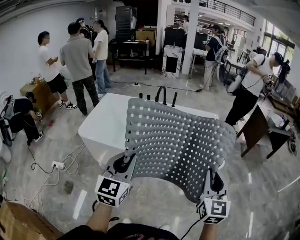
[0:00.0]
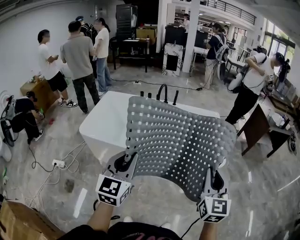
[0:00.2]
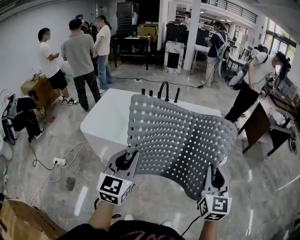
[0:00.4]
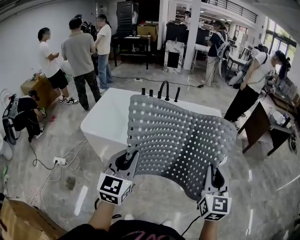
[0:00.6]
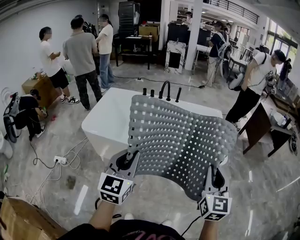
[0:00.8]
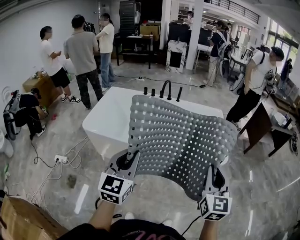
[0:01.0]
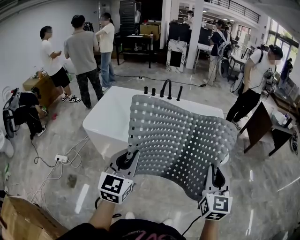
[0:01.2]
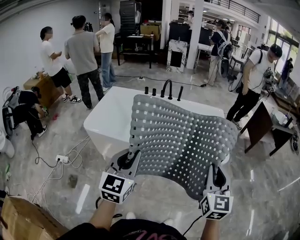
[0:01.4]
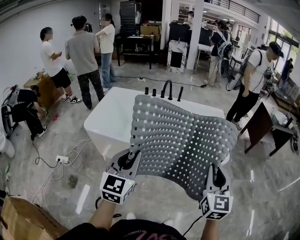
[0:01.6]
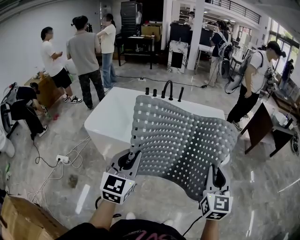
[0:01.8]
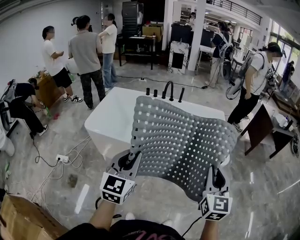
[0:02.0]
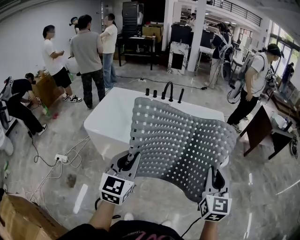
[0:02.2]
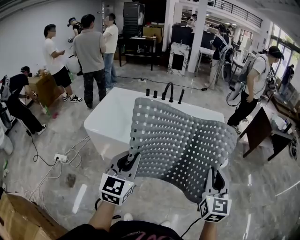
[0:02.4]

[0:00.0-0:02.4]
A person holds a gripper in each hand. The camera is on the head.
0:00.0 to 0:02.4: There are only small adjustments of the grippers.

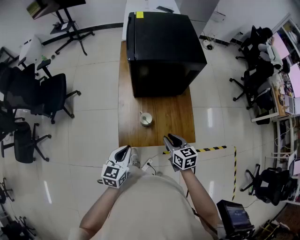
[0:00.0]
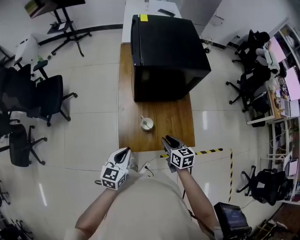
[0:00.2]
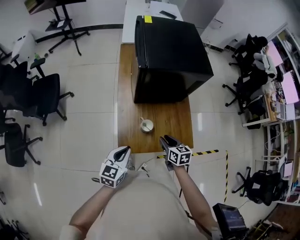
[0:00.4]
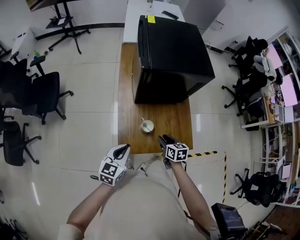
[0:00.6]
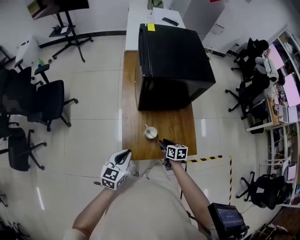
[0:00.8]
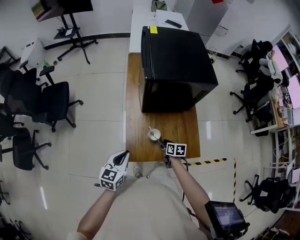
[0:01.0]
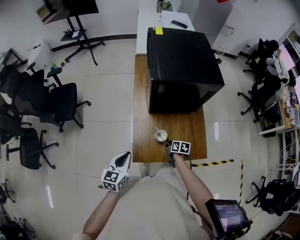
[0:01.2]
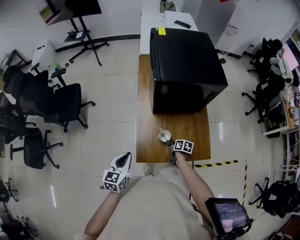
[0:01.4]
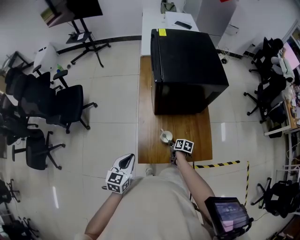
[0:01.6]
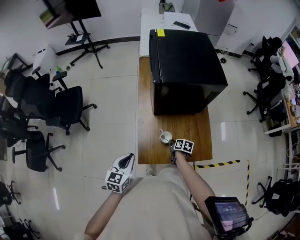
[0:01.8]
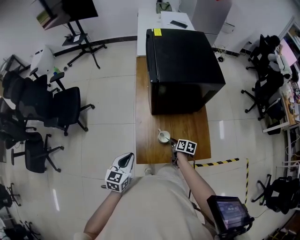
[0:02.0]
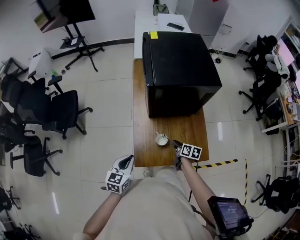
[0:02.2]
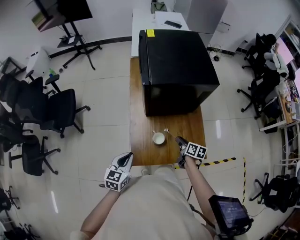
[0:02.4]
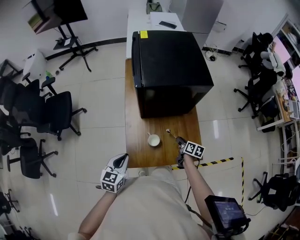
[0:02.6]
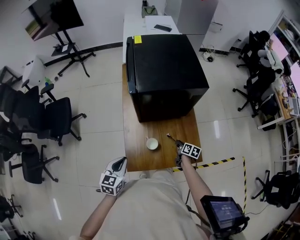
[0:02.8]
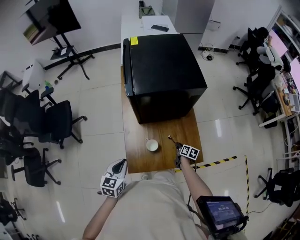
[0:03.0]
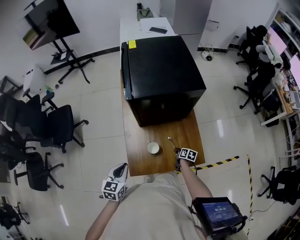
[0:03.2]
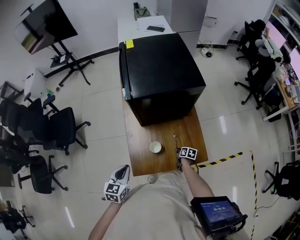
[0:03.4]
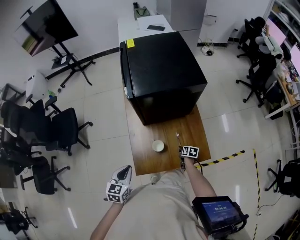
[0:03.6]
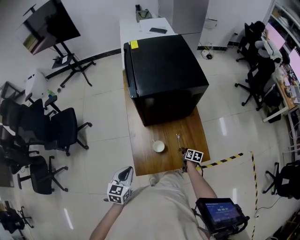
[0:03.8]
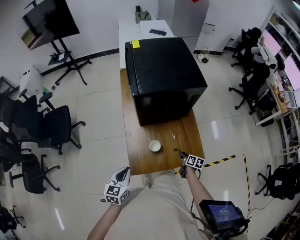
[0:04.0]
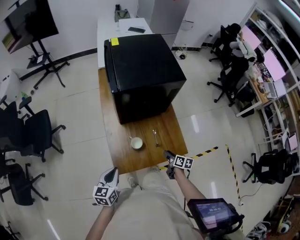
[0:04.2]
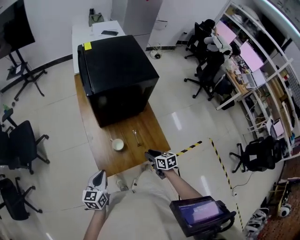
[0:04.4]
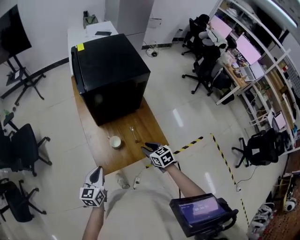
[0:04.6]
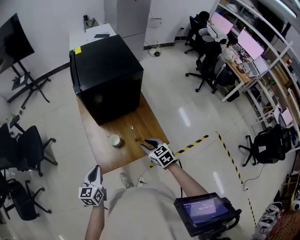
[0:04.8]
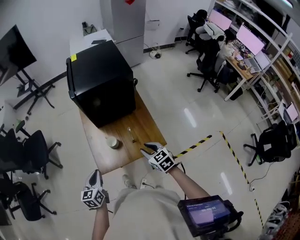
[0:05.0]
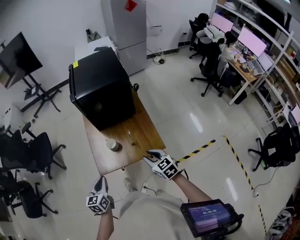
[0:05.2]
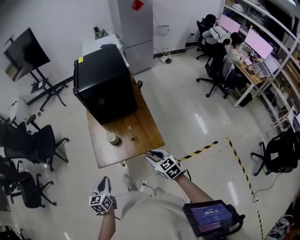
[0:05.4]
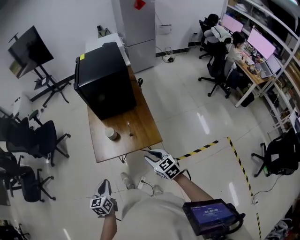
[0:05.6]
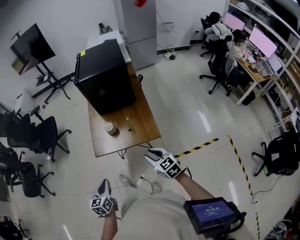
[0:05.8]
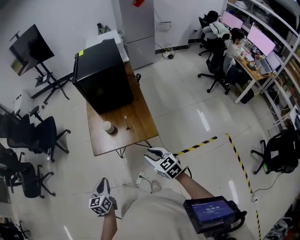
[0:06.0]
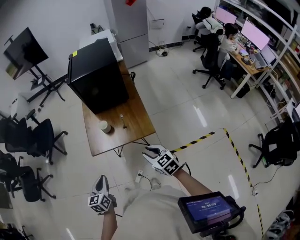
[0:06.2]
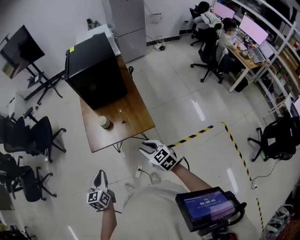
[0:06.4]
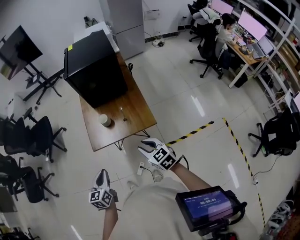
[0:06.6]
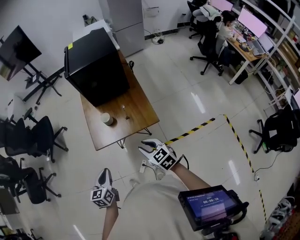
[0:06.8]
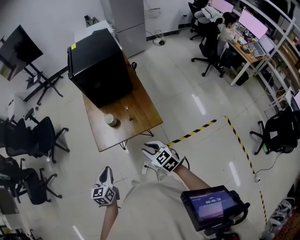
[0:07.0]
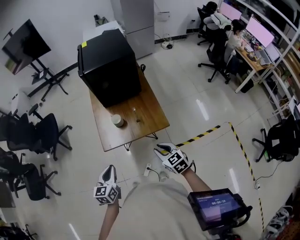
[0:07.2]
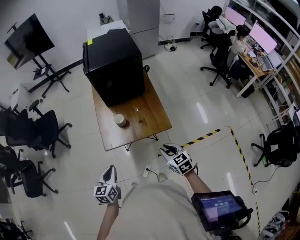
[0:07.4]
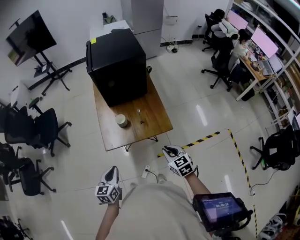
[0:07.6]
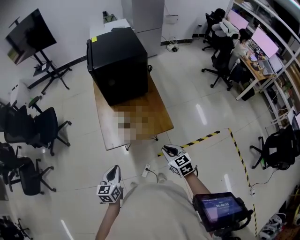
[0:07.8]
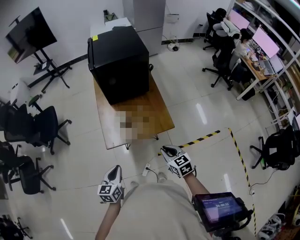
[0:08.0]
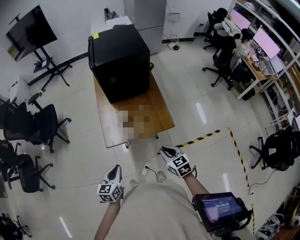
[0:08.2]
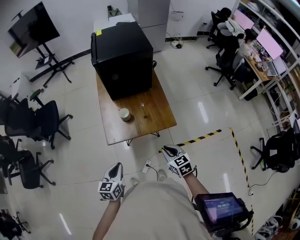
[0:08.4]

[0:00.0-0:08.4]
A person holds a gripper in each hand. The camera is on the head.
0:00.0 to 0:01.4: The right gripper travels downward and forward by about 25 cm, and rotates roughly 40 degrees; the left gripper heads to the left and forward, covering some 15 cm.
0:01.4 to 0:02.8: The left gripper ends up about 5 cm from where it was; the right gripper heads to the right, covering about 15 cm, and closes.
0:02.8 to 0:04.2: The right gripper heads backward, covering about 10 cm, and travels downward and back again, approximately 10 cm each way.
0:04.2 to 0:05.6: The left gripper travels backward and to the right by some 25 cm. Meanwhile the right gripper shifts roughly 25 cm backward and upward, and twists approximately 60 degrees counterclockwise, seen from behind.
0:05.6 to 0:07.0: The right gripper goes some 5 cm to the left.
0:07.0 to 0:08.4: The grippers make only small movements.

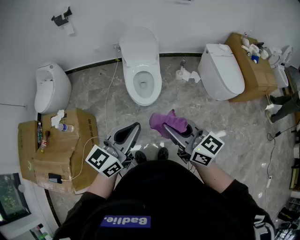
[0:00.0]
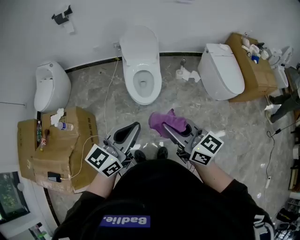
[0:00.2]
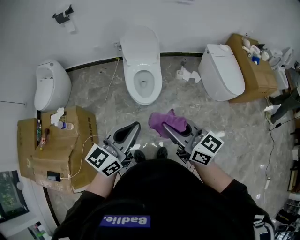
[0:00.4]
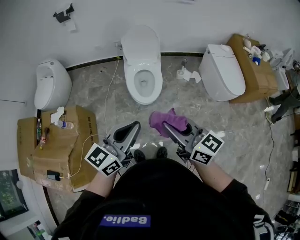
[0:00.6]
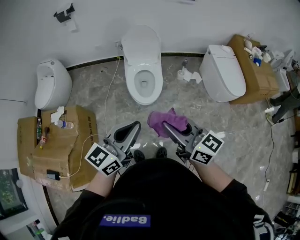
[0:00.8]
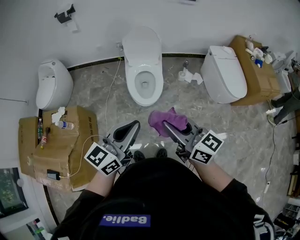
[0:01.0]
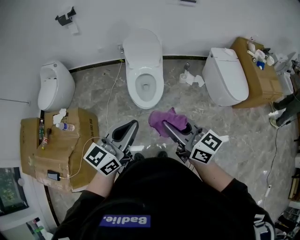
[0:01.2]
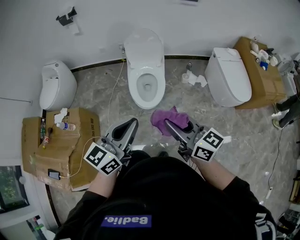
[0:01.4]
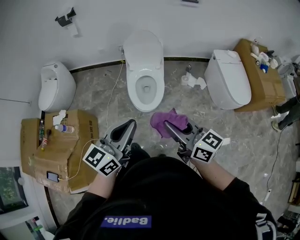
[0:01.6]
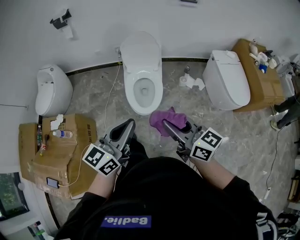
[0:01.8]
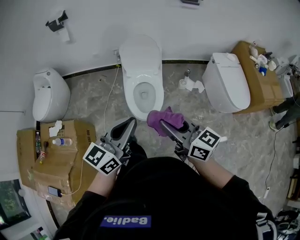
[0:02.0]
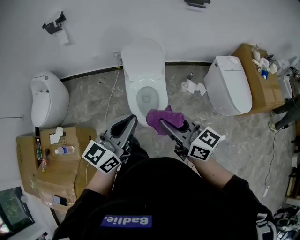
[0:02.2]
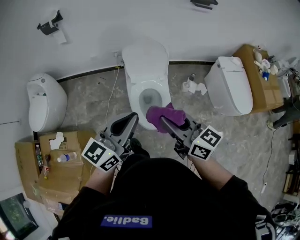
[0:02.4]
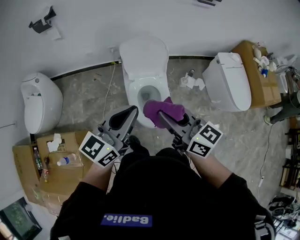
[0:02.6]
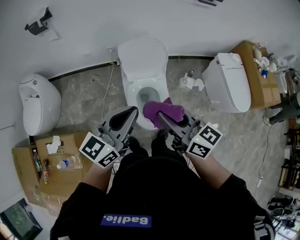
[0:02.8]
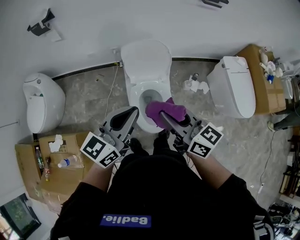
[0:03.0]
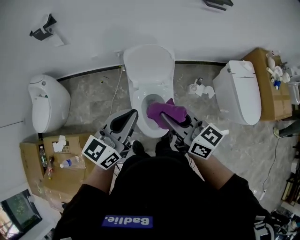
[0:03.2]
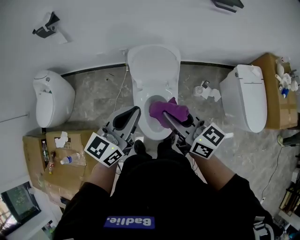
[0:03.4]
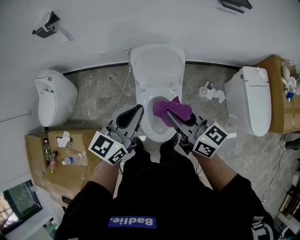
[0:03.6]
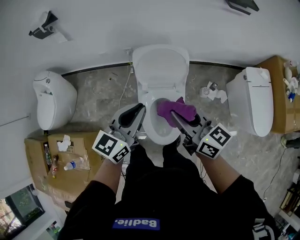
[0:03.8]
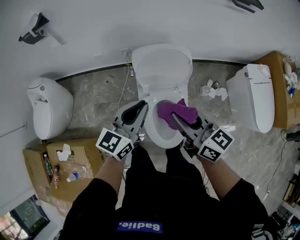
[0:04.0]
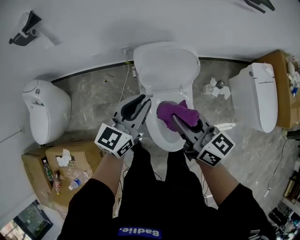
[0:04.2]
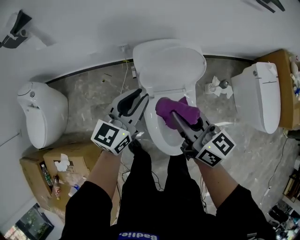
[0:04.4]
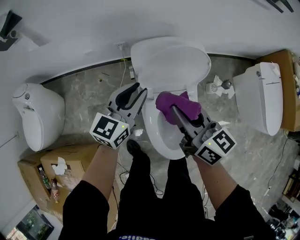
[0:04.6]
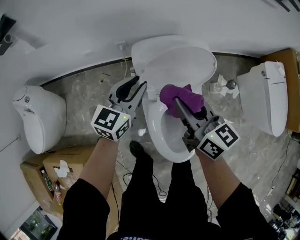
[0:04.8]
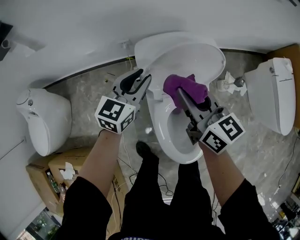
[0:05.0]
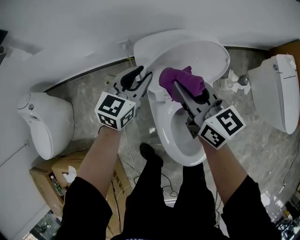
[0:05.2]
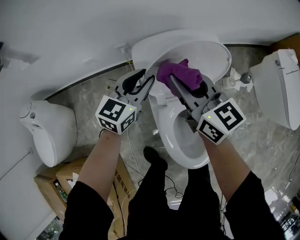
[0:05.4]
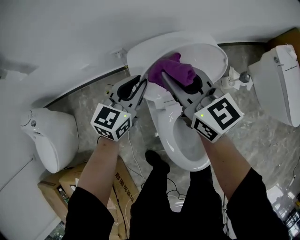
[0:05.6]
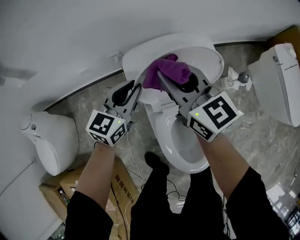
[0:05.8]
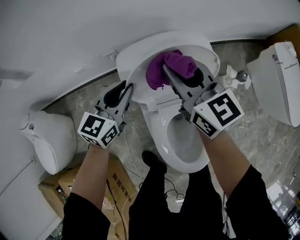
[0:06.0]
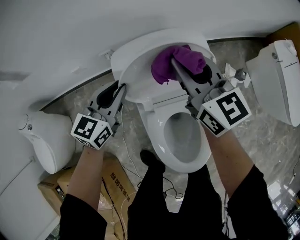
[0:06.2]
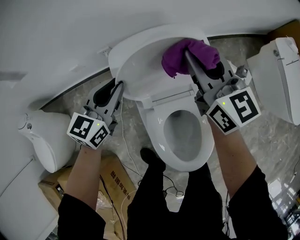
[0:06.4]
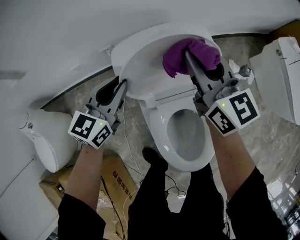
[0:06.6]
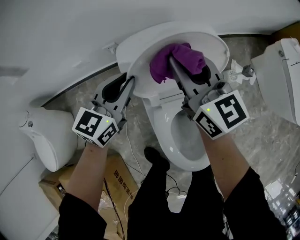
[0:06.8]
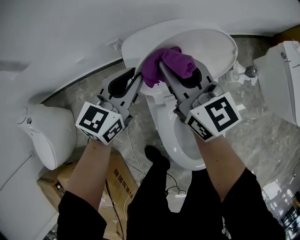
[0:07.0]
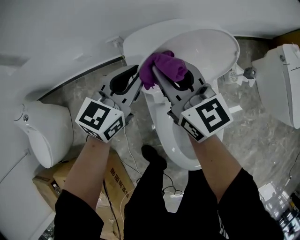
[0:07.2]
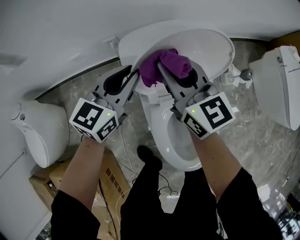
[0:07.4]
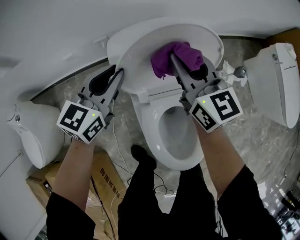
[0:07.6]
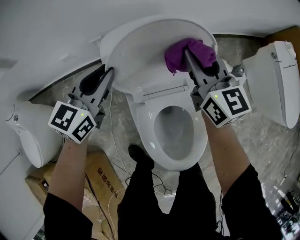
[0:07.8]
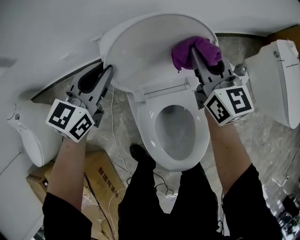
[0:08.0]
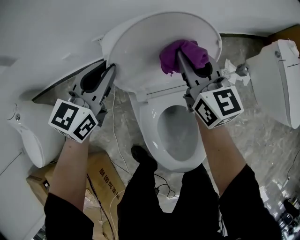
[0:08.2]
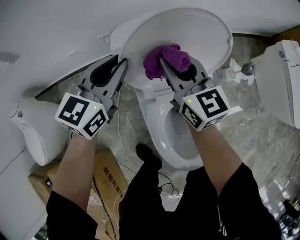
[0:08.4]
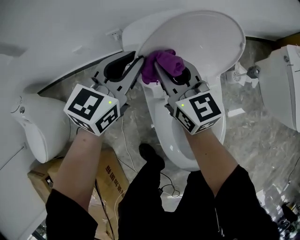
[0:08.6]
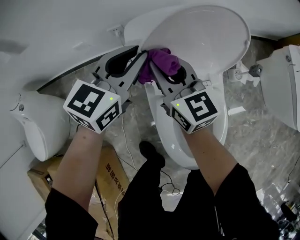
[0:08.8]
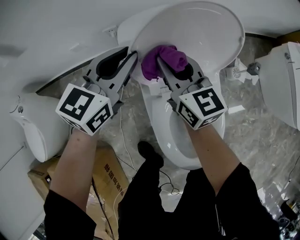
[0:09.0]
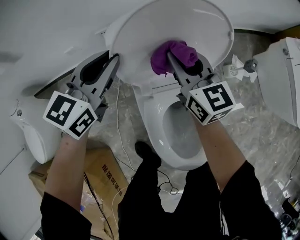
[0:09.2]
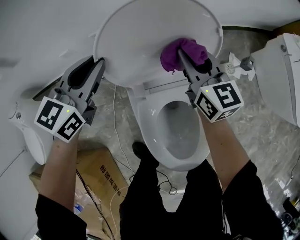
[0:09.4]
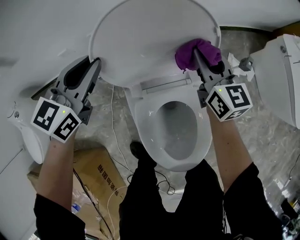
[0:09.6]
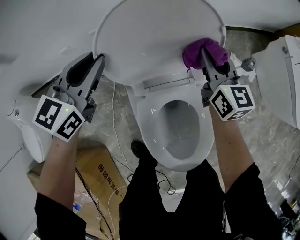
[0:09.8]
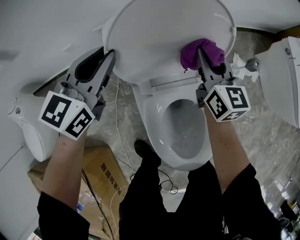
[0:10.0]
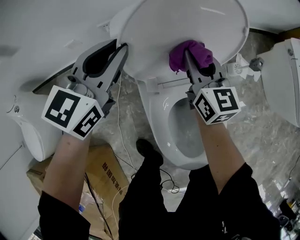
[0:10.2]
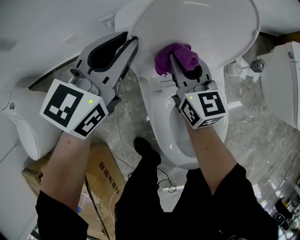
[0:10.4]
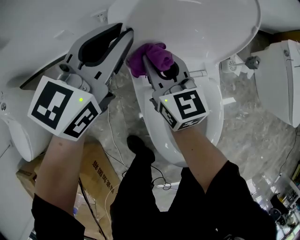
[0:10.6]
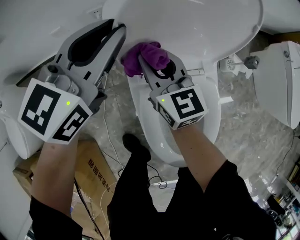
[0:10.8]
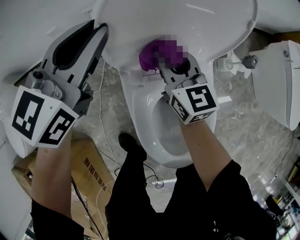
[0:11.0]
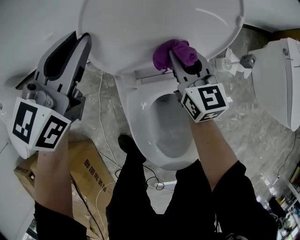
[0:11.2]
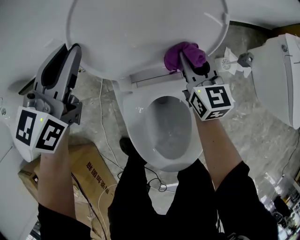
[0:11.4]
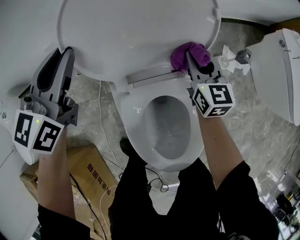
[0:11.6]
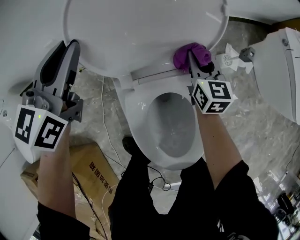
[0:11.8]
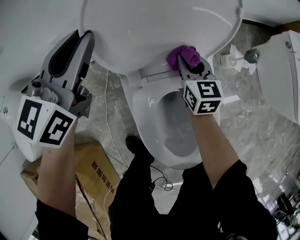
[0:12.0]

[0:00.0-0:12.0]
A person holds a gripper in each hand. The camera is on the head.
0:00.0 to 0:01.6: The left gripper travels forward by about 5 cm. The right gripper heads forward and to the right, covering approximately 10 cm.
0:01.6 to 0:03.0: Both grippers move forward, roughly 35 cm.
0:03.0 to 0:04.4: The two grippers go approximately 30 cm forward and downward.
0:04.4 to 0:06.0: The left gripper travels downward and forward by approximately 20 cm. The right gripper travels forward and downward by roughly 25 cm, and changes its angle by roughly 20 degrees.
0:06.0 to 0:07.6: The right gripper swings left and right, about 15 cm each way, with 2 reversals.
0:07.6 to 0:09.0: The right gripper goes left and right, some 20 cm each way, reversing 2 times.
0:09.0 to 0:10.4: The right gripper goes approximately 5 cm downward, and goes to the right and returns, roughly 20 cm each way.
0:10.4 to 0:12.0: The right gripper moves left and right over about 25 cm, changing direction 2 times.

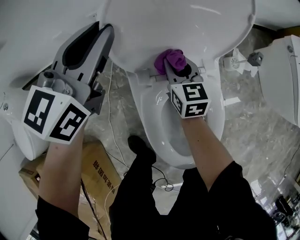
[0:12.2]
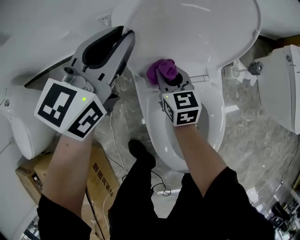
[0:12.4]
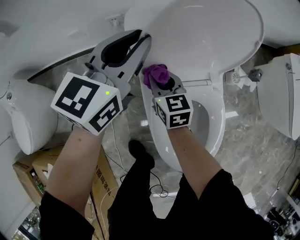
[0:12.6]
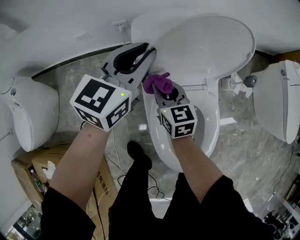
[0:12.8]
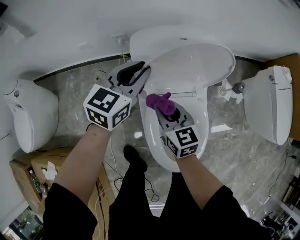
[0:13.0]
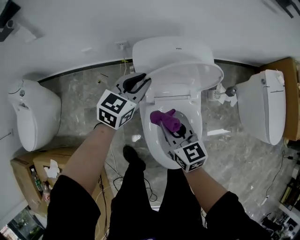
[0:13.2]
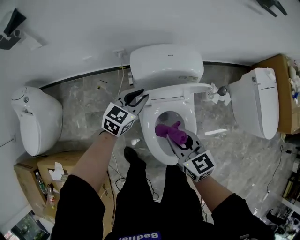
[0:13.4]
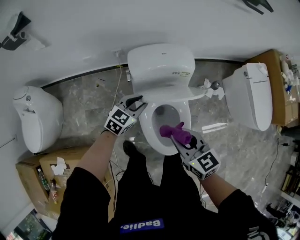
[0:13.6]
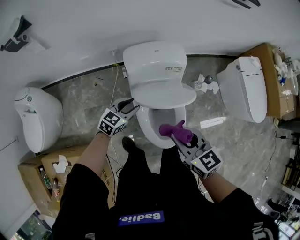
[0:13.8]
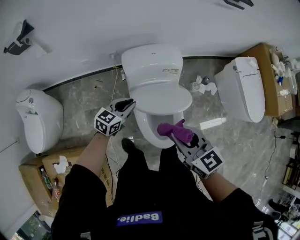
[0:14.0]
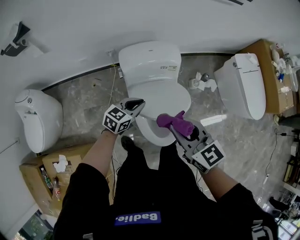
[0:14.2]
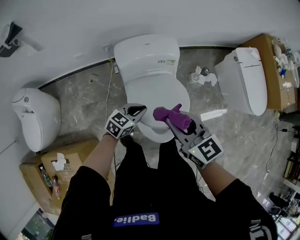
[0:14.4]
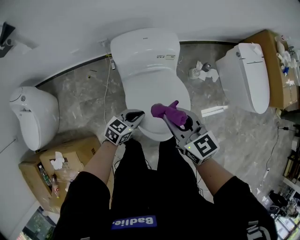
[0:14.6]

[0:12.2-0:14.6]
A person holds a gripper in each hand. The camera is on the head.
0:12.2 to 0:13.4: The right gripper heads upward and backward, covering some 35 cm. The left gripper heads backward, covering roughly 10 cm.
0:13.4 to 0:14.6: The left gripper travels backward and to the right by roughly 20 cm, and swivels some 20 degrees, while the right gripper goes roughly 10 cm upward and to the right.
